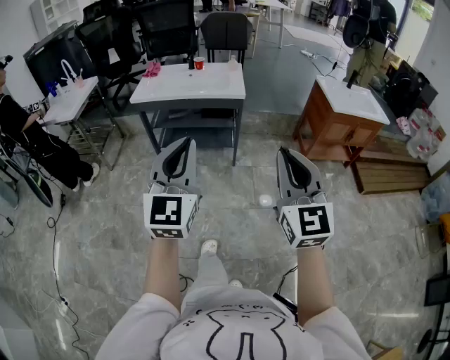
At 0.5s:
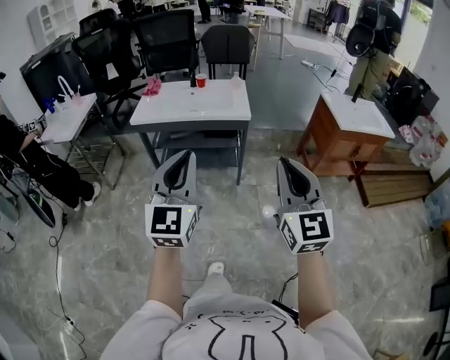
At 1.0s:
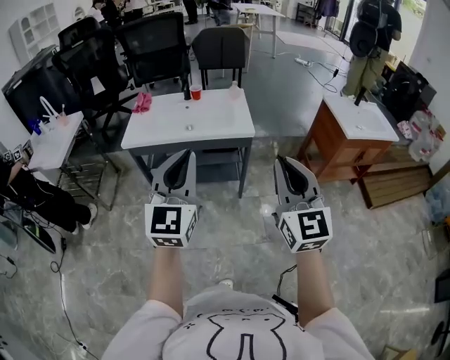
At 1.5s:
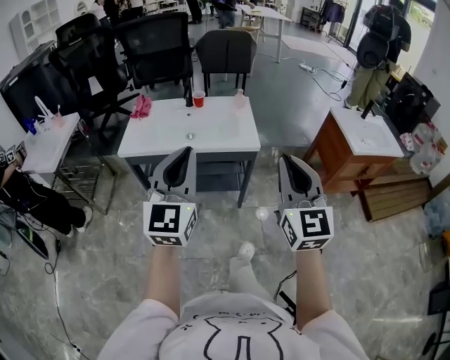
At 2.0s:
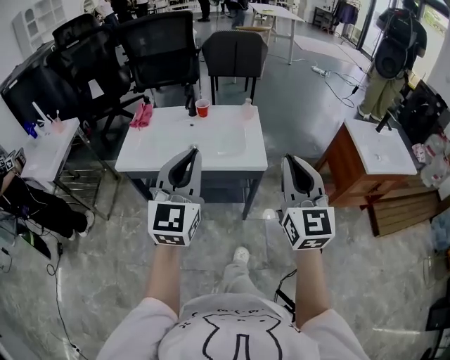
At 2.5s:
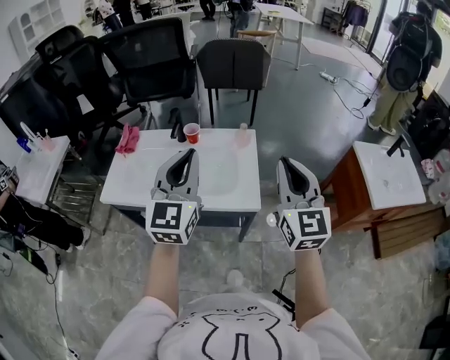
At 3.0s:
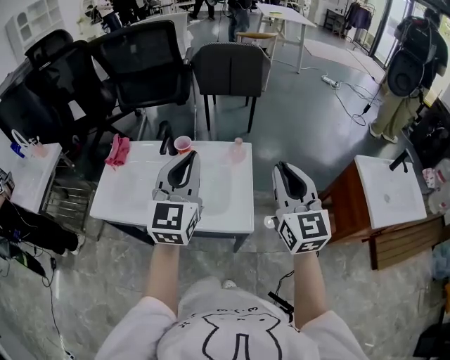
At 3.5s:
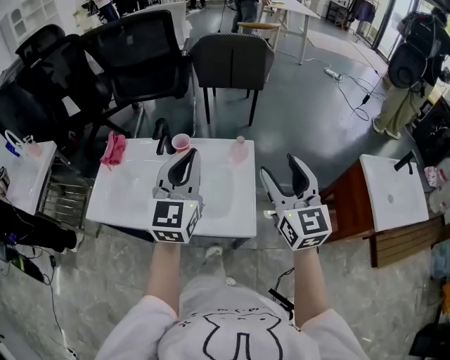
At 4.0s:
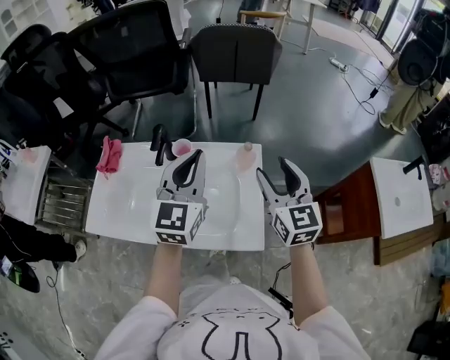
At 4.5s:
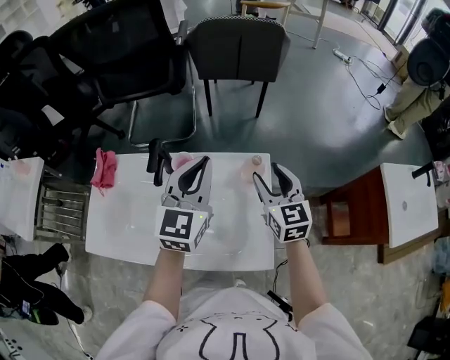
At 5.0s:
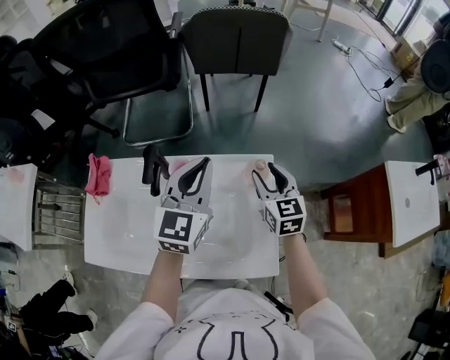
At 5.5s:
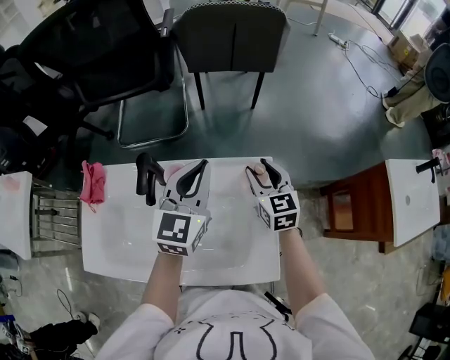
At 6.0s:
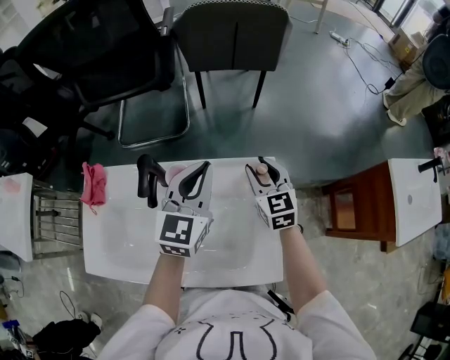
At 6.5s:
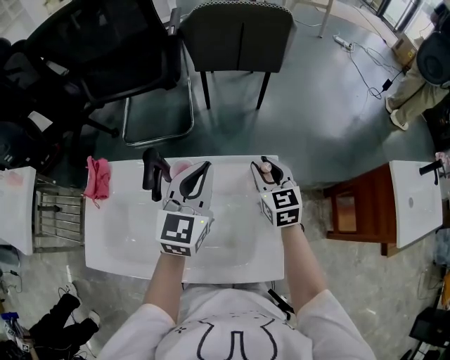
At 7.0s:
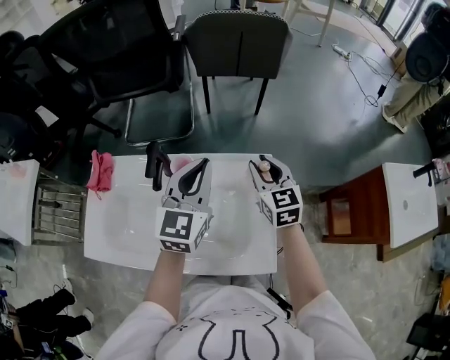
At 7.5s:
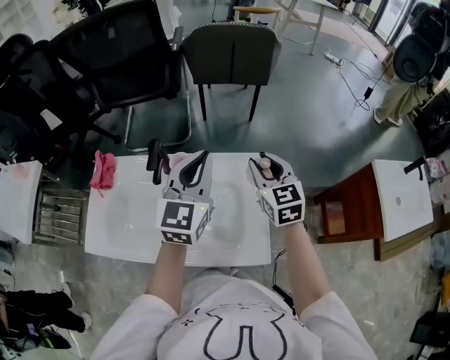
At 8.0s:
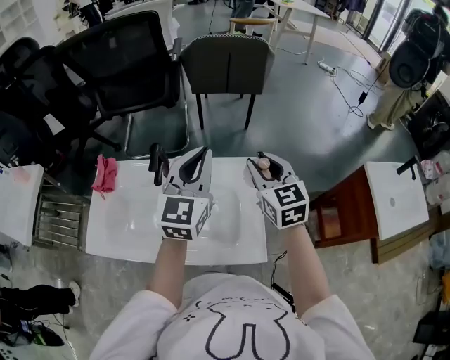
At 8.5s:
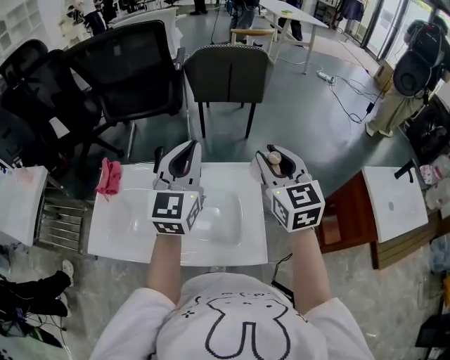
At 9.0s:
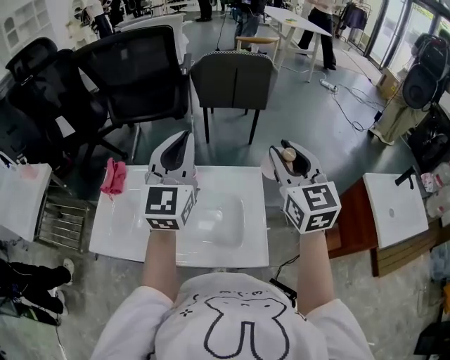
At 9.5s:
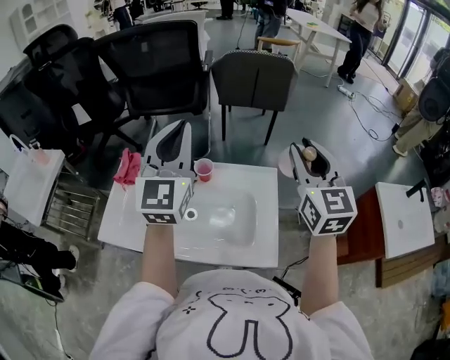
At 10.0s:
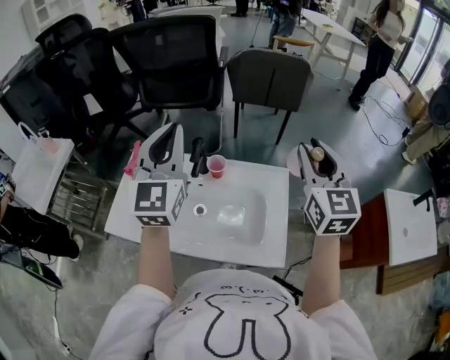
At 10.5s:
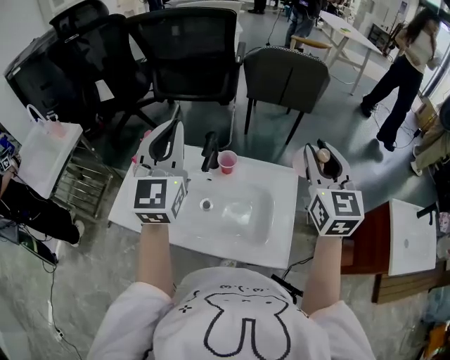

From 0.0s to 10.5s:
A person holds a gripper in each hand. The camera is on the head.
From 0.0s to 2.0s: The two grippers travel together, forward, roughly 50 cm.
From 2.0s to 4.0s: The pair of grippers is taken forward, approximately 40 cm. The right gripper opens up.
From 4.0s to 6.5s: The left gripper goes about 15 cm forward and downward; the right gripper heads downward and forward, covering approximately 25 cm, and closes up.
From 6.5s to 8.5s: The left gripper goes roughly 15 cm upward and backward. Meanwhile the right gripper is displaced upward and backward by some 25 cm.
From 8.5s to 10.5s: The right gripper heads upward, covering approximately 5 cm, while the left gripper goes roughly 15 cm to the left, and turns by roughly 20 degrees.

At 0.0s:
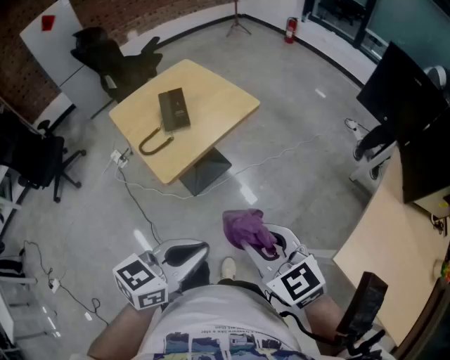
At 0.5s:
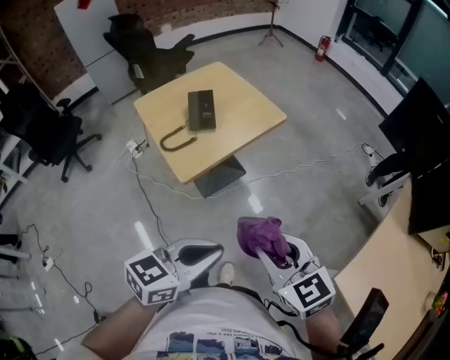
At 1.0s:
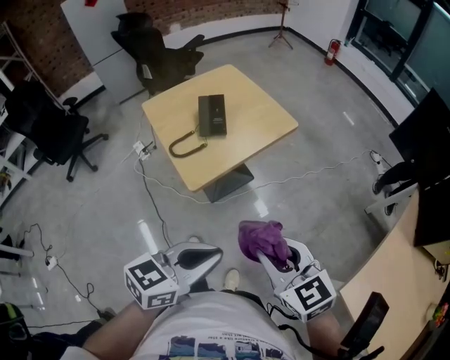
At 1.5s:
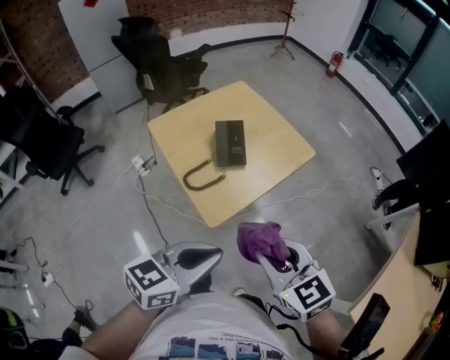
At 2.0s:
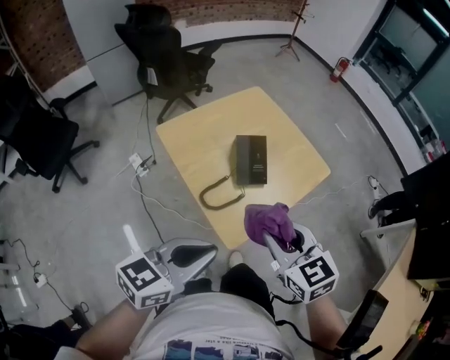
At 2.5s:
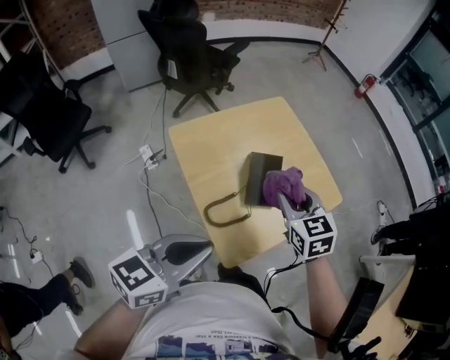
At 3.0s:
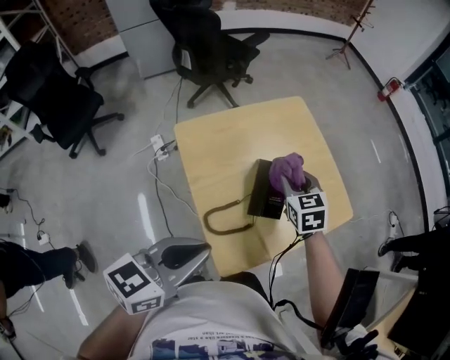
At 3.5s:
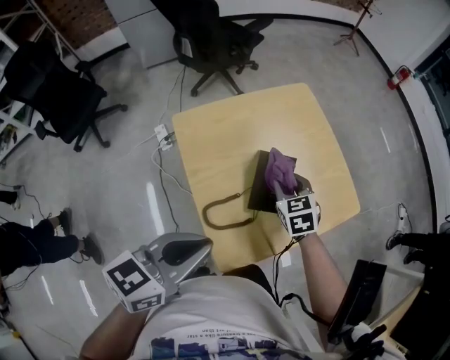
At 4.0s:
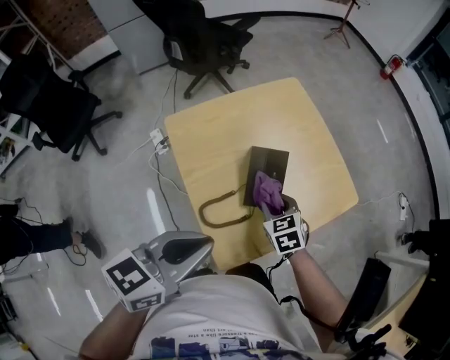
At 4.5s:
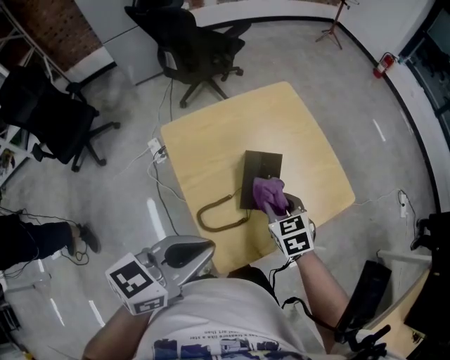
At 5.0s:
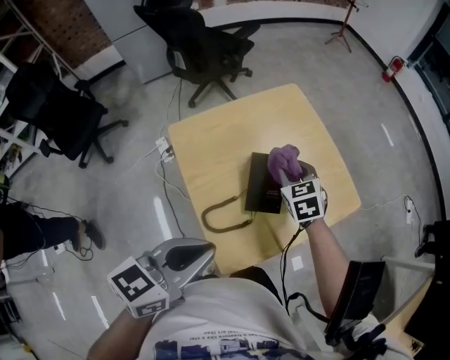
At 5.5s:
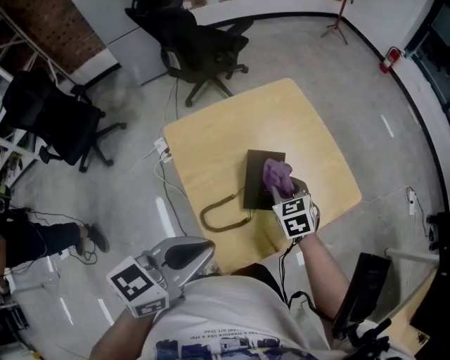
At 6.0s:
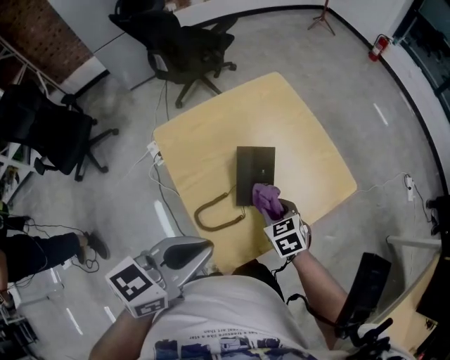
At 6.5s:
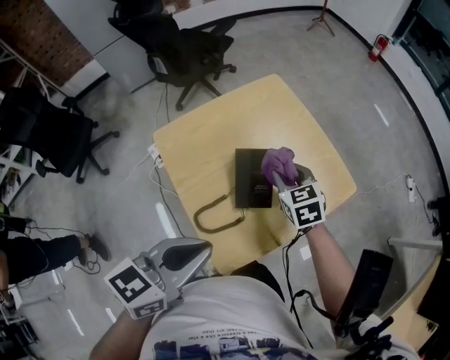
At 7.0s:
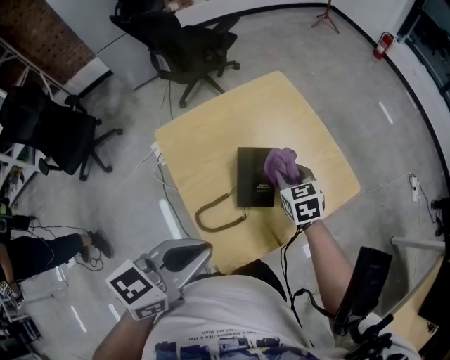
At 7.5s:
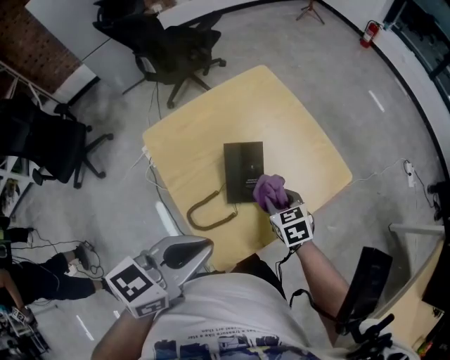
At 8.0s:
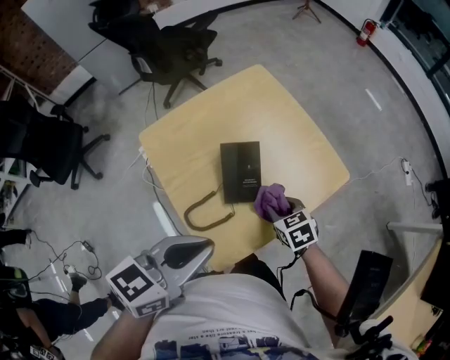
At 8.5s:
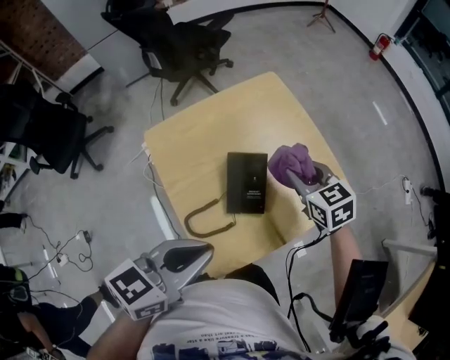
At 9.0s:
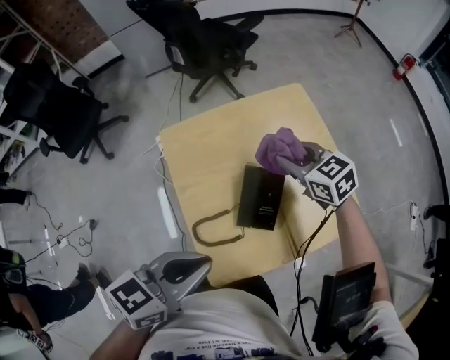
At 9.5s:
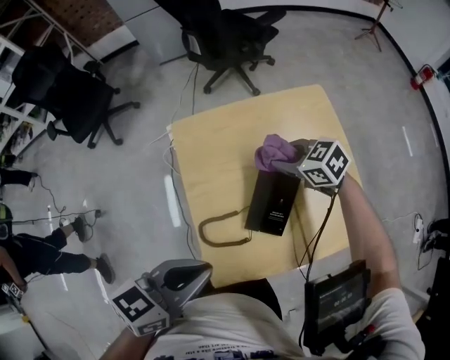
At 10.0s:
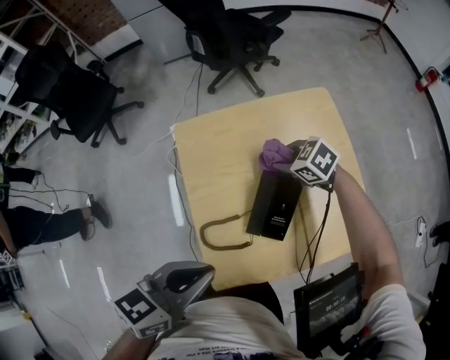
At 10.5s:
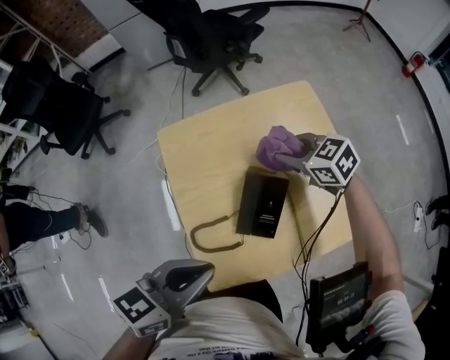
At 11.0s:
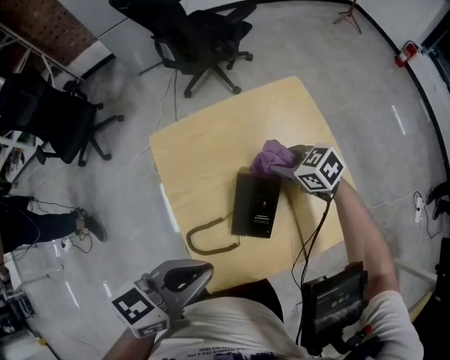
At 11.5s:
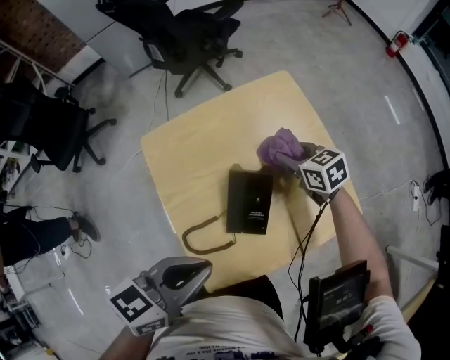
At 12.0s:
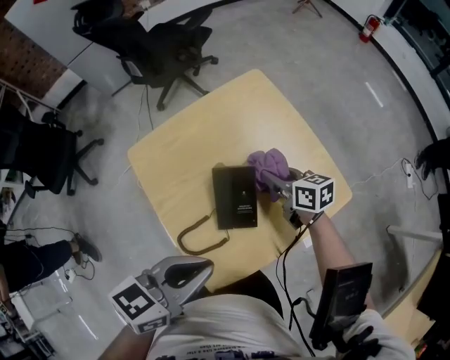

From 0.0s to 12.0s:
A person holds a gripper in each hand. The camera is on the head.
From 0.0s to 2.0s: The left gripper heads to the left and forward, covering roughly 30 cm; the right gripper travels forward and to the left by approximately 30 cm.
From 2.0s to 4.0s: The left gripper goes some 10 cm forward, while the right gripper moves downward and forward, some 25 cm, and changes its angle by about 20 degrees.
From 4.0s to 6.0s: The right gripper goes forward and returns, some 10 cm each way.
From 6.0s to 8.0s: The right gripper travels to the right by about 5 cm, and travels forward and back again, roughly 10 cm each way.
From 8.0s to 10.0s: The right gripper goes upward and returns, about 15 cm each way, and rotates roughly 50 degrees; the left gripper rotates about 20 degrees.
From 10.0s to 12.0s: The right gripper changes place by some 15 cm, and rotates about 60 degrees.

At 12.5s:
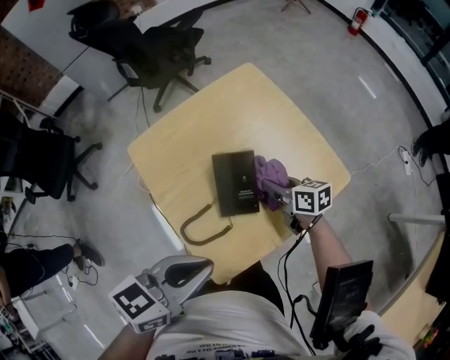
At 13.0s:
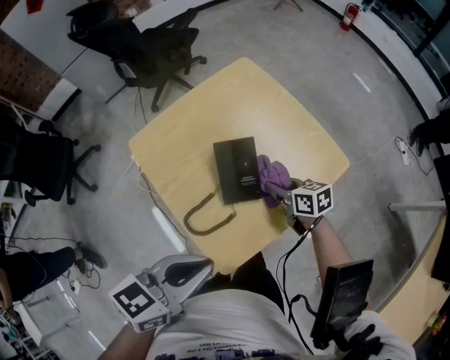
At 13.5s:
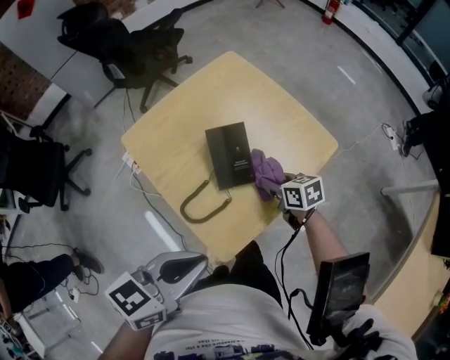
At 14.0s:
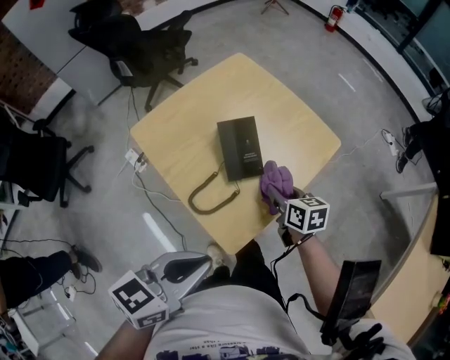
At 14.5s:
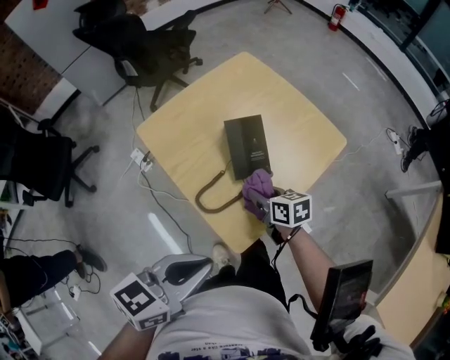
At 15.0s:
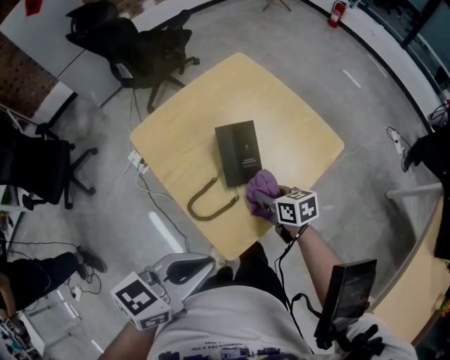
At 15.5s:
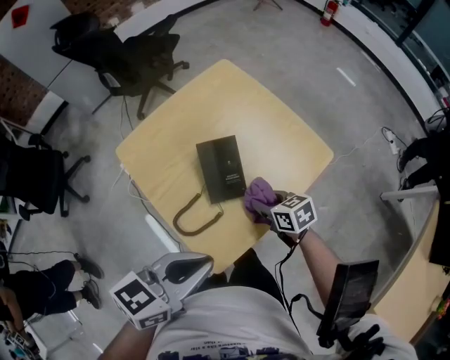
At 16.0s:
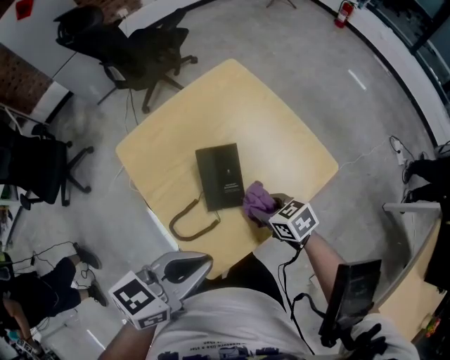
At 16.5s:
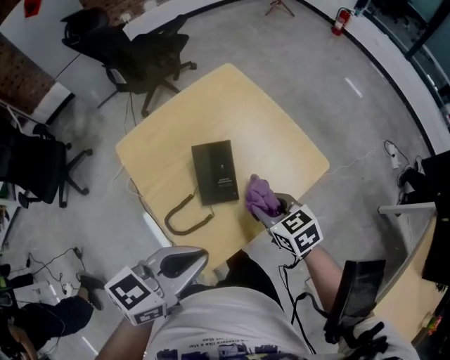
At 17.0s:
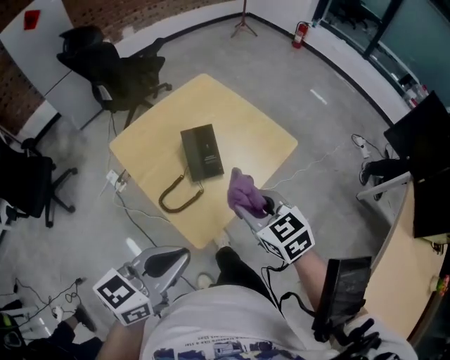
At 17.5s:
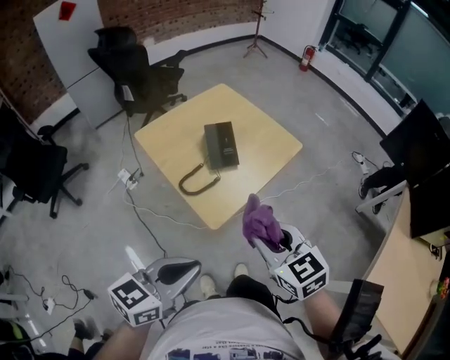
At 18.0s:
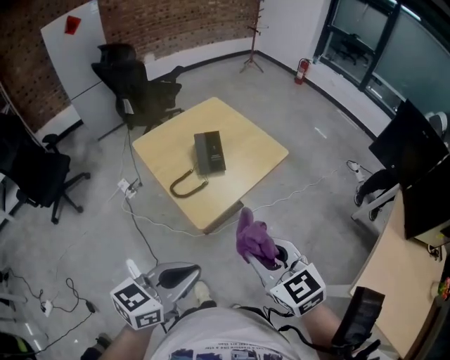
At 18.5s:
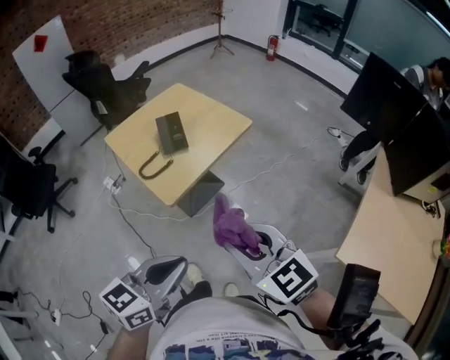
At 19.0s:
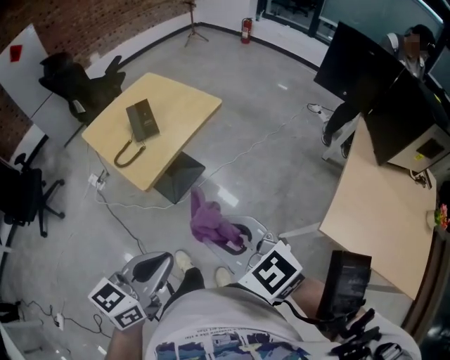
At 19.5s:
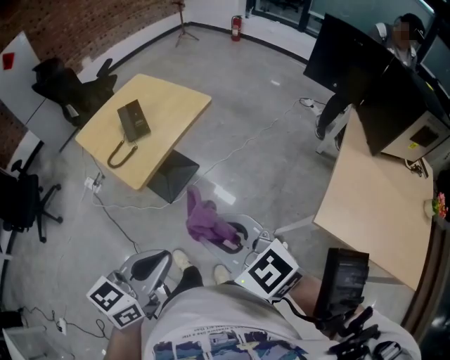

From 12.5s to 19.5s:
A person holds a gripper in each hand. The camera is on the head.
From 12.5s to 14.5s: The right gripper moves backward and to the left, roughly 15 cm; the left gripper is displaced backward by approximately 10 cm.
From 14.5s to 16.0s: The right gripper is displaced to the right by approximately 5 cm, and rotates about 30 degrees; the left gripper shifts about 15 cm forward and to the right.
From 16.0s to 17.5s: The right gripper moves backward and upward, approximately 35 cm, and swivels roughly 30 degrees. Meanwhile the left gripper shifts about 25 cm backward.
From 17.5s to 19.5s: The right gripper shifts some 20 cm backward and to the right; the left gripper moves to the right and backward, about 20 cm.
